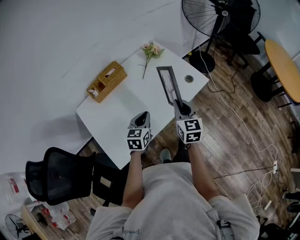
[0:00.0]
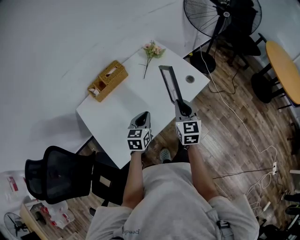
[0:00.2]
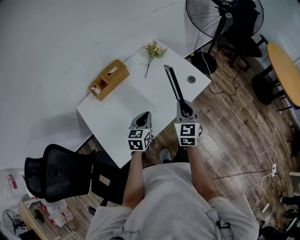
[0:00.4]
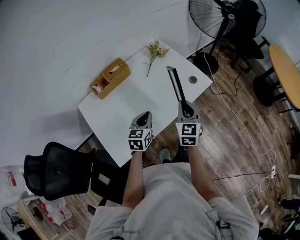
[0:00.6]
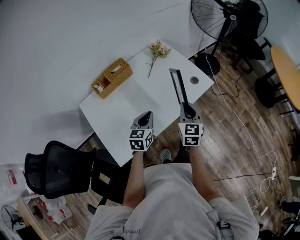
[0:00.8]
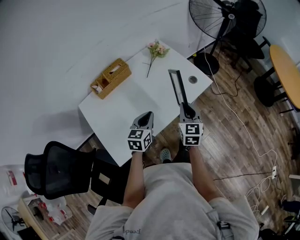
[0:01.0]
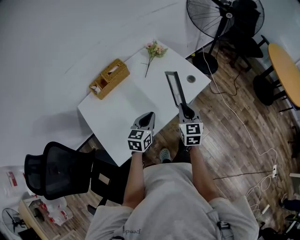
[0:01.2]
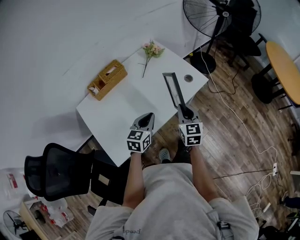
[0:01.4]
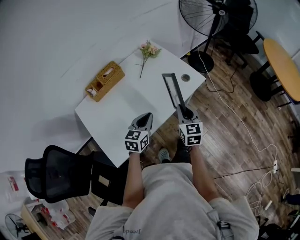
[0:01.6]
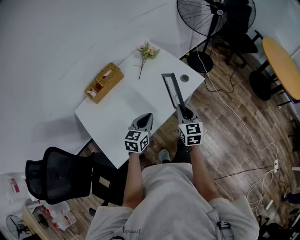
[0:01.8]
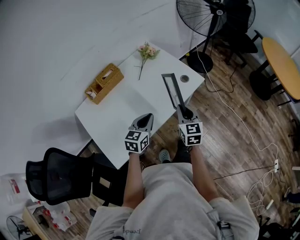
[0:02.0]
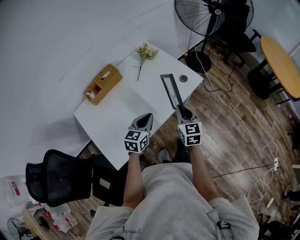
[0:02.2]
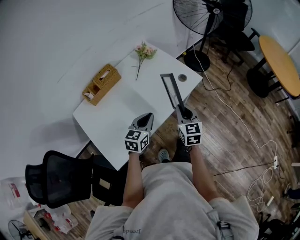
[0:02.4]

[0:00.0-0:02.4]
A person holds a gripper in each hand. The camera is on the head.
0:00.0 to 0:02.4: The grippers make only small movements.

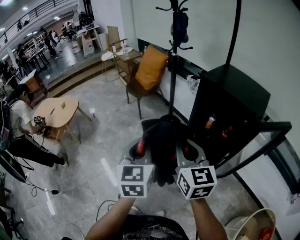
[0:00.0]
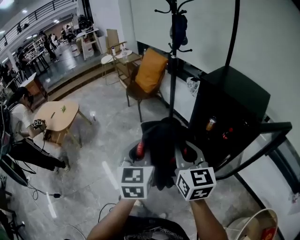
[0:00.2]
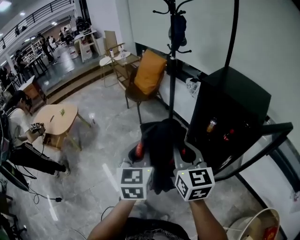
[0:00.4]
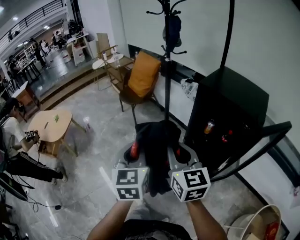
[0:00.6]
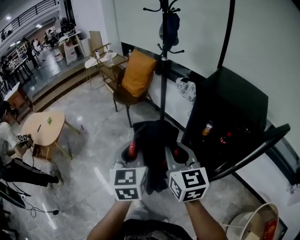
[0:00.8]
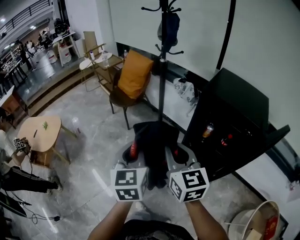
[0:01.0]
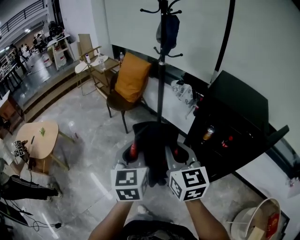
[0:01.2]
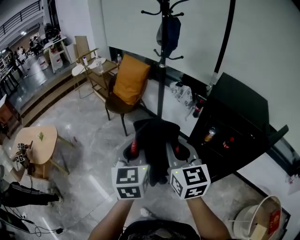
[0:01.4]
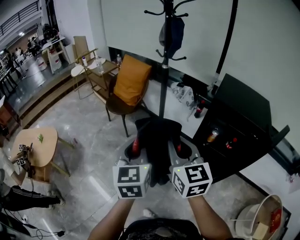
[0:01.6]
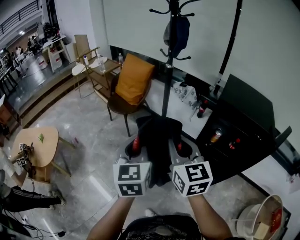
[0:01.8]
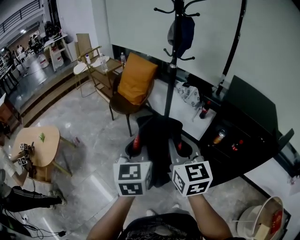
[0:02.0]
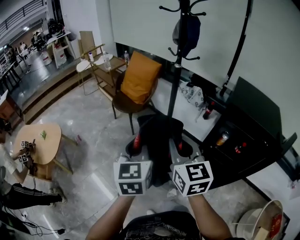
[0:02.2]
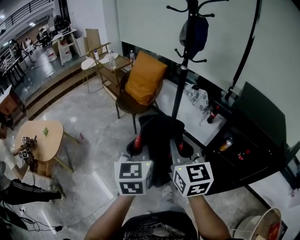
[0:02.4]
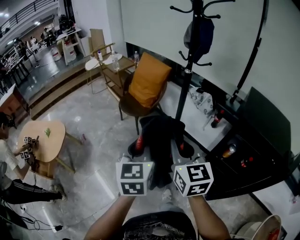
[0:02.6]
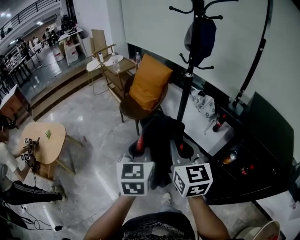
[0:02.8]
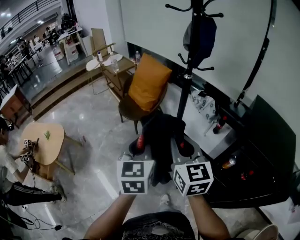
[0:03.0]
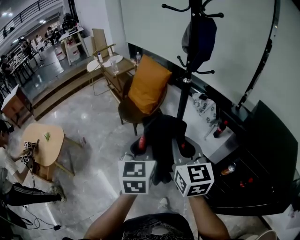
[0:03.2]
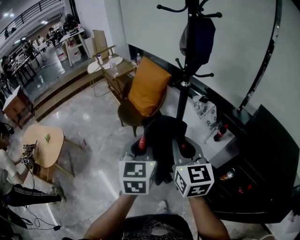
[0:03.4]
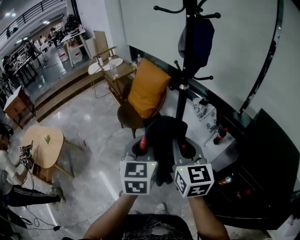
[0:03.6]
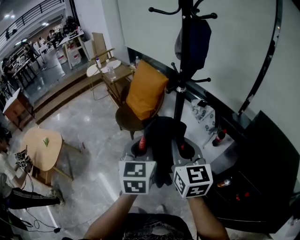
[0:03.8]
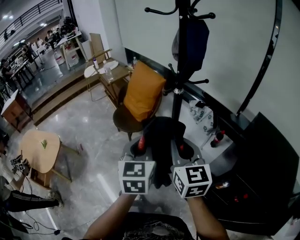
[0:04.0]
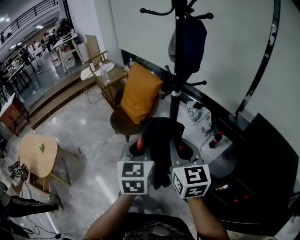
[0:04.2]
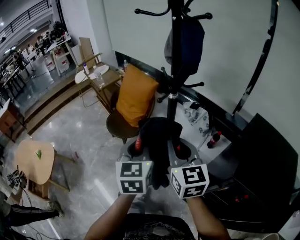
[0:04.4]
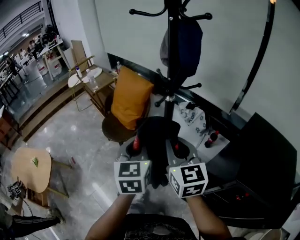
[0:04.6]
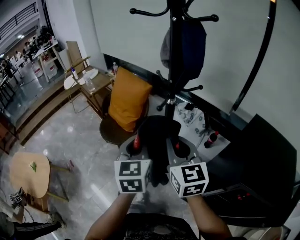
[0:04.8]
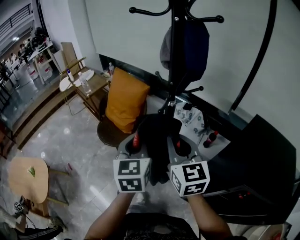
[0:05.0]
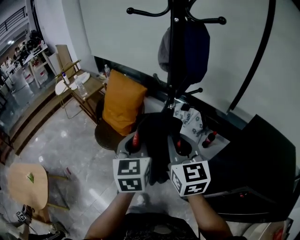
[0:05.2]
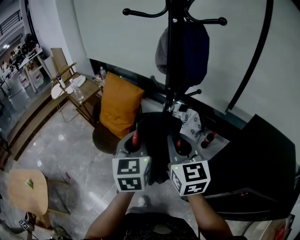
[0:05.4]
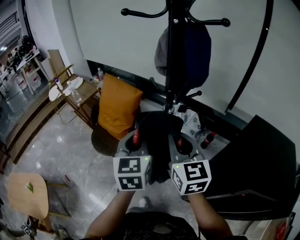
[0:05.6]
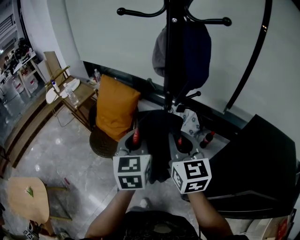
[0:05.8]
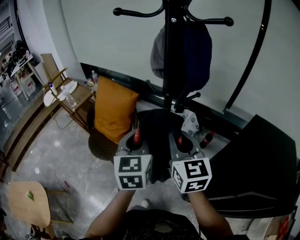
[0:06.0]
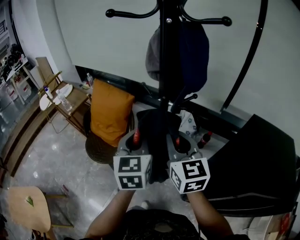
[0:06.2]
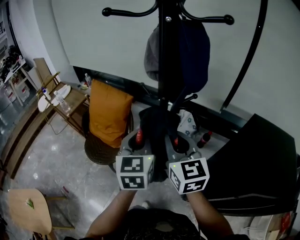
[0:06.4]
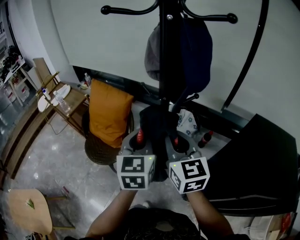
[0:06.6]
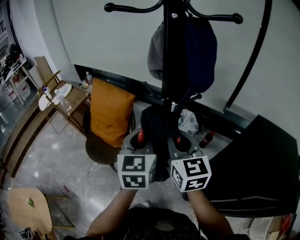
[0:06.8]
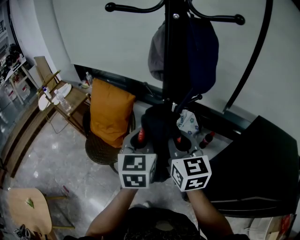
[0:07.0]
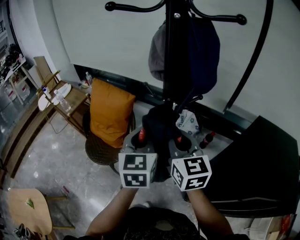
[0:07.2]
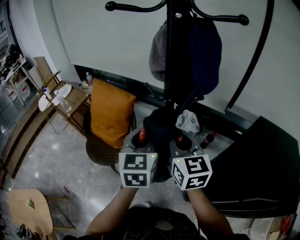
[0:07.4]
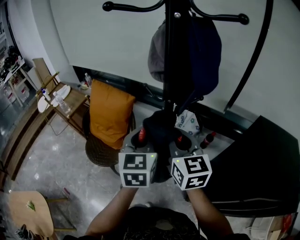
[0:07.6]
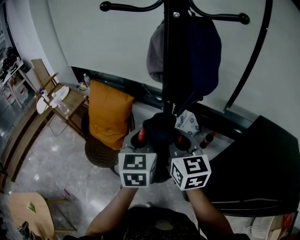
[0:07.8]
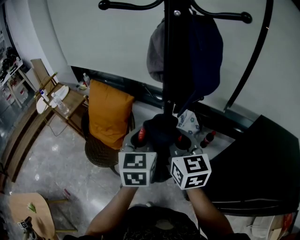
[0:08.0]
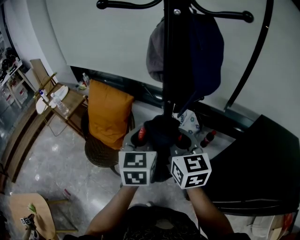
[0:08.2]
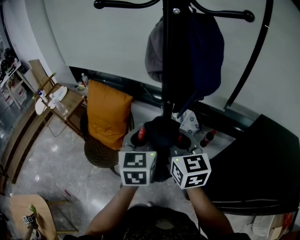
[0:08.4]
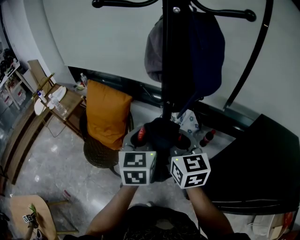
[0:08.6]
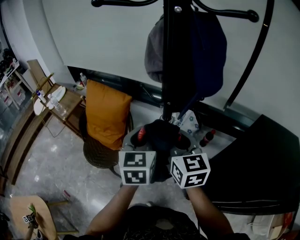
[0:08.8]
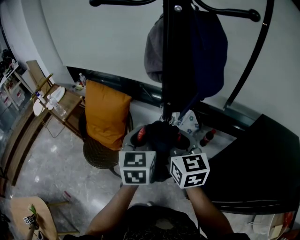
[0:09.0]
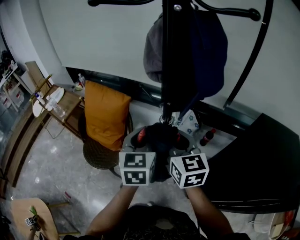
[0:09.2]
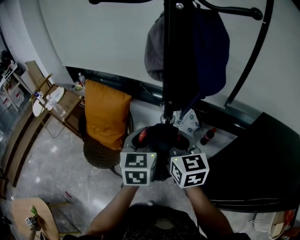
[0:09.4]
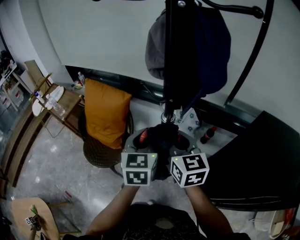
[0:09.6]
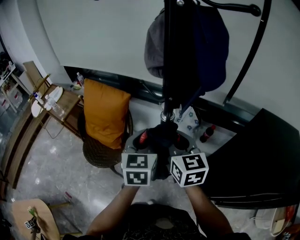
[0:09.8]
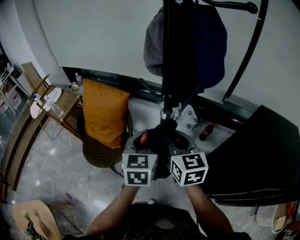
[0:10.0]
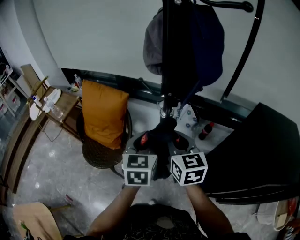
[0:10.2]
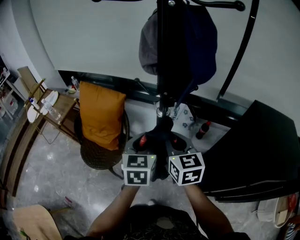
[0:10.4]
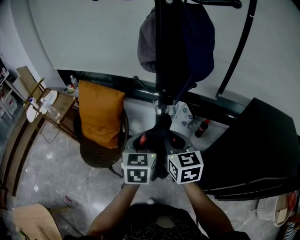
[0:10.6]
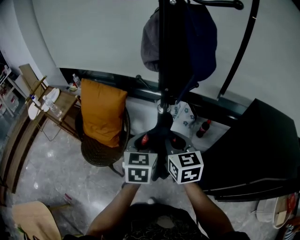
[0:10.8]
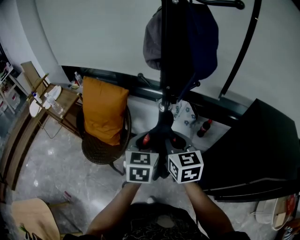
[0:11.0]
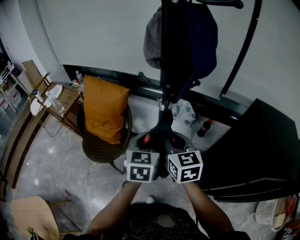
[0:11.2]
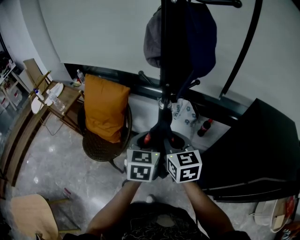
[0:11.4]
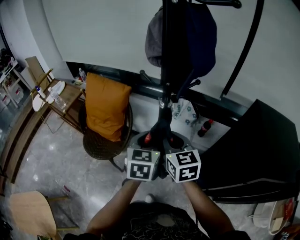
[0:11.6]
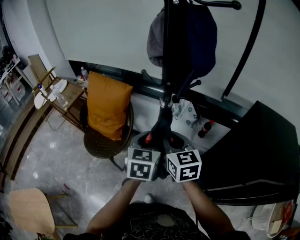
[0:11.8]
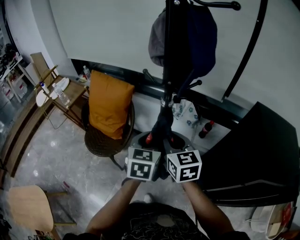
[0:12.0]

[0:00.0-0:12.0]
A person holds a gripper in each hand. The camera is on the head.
0:00.0 to 0:01.6: The two grippers go some 25 cm forward and to the left.
0:01.6 to 0:03.0: The two grippers go roughly 20 cm forward.
0:03.0 to 0:04.4: The two grippers go roughly 20 cm forward and to the right.
0:04.4 to 0:06.0: Both grippers travel together forward, approximately 15 cm.
0:06.0 to 0:07.6: Both grippers move forward, roughly 5 cm.
0:07.6 to 0:09.0: The grippers move only a little.
0:09.0 to 0:10.4: The left gripper changes place by roughly 5 cm. The right gripper shifts by some 5 cm.
0:10.4 to 0:12.0: The left gripper moves about 5 cm.

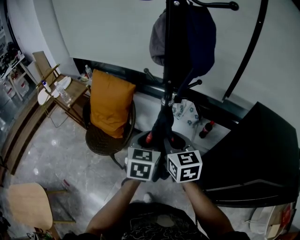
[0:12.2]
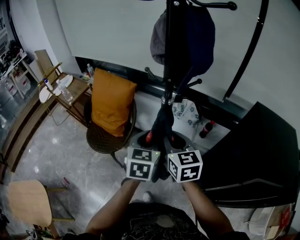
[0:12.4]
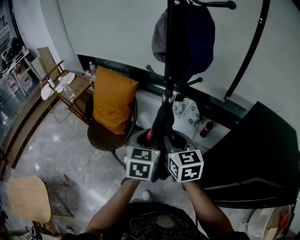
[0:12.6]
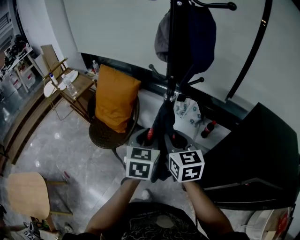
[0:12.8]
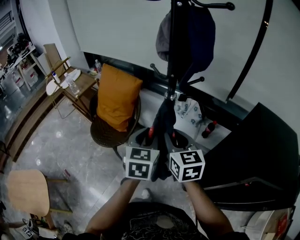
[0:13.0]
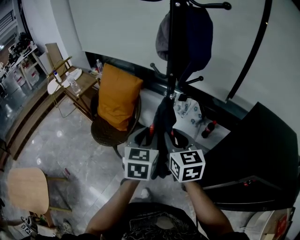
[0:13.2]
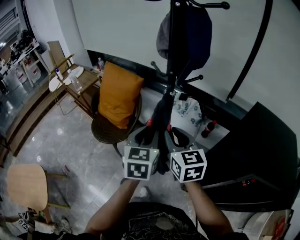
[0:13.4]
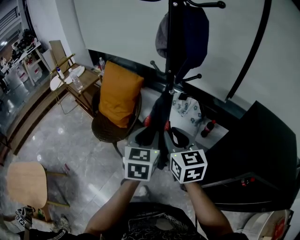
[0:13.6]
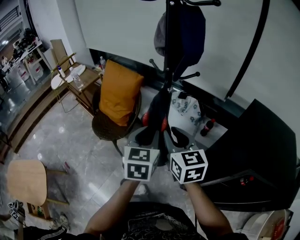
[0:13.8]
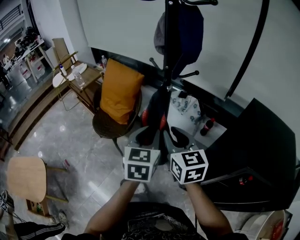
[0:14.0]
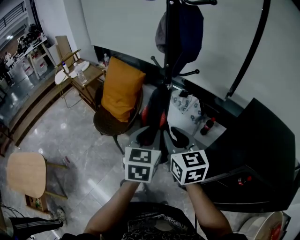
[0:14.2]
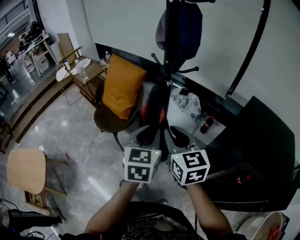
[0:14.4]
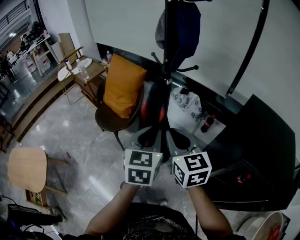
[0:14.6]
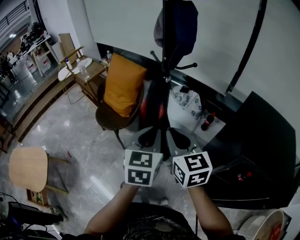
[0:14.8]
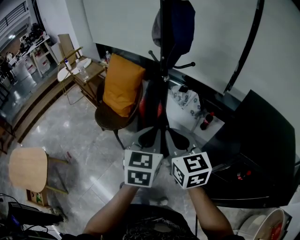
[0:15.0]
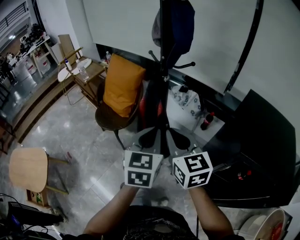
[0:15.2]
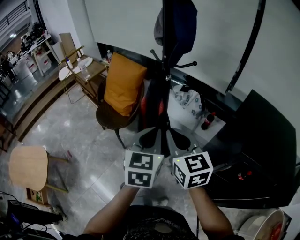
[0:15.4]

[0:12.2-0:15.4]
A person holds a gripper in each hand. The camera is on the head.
0:12.2 to 0:13.8: The grippers both shift backward by some 10 cm.
0:13.8 to 0:15.4: The grippers both shift backward by some 10 cm.

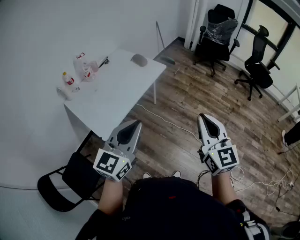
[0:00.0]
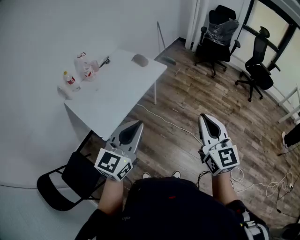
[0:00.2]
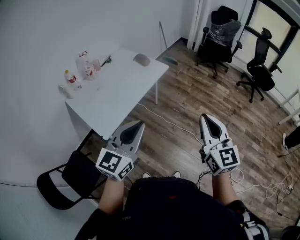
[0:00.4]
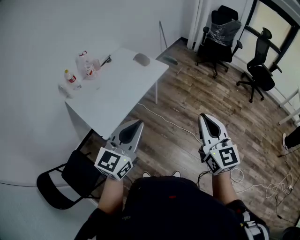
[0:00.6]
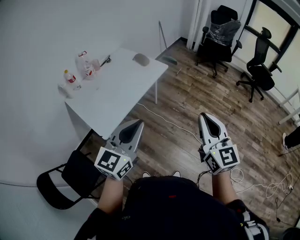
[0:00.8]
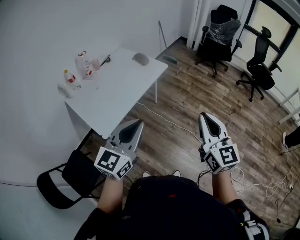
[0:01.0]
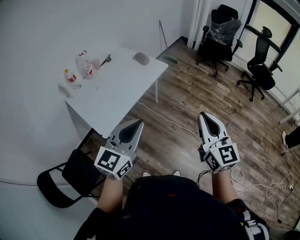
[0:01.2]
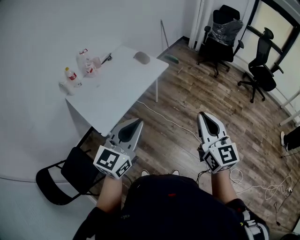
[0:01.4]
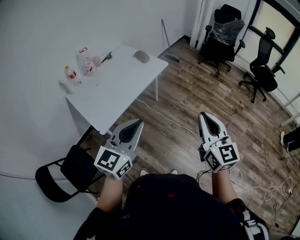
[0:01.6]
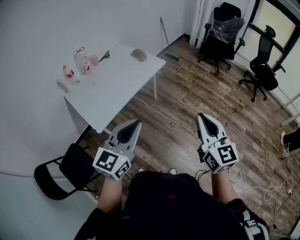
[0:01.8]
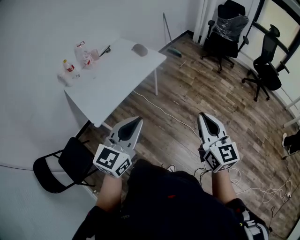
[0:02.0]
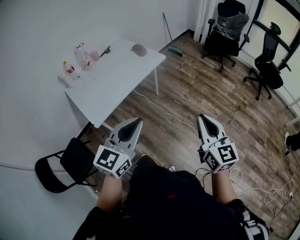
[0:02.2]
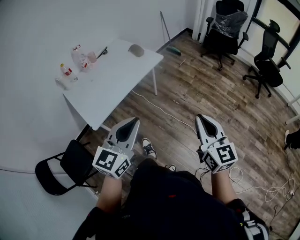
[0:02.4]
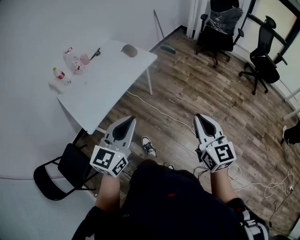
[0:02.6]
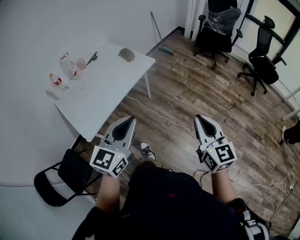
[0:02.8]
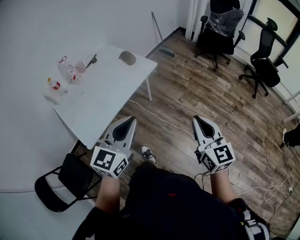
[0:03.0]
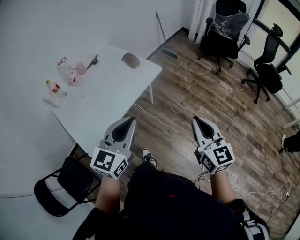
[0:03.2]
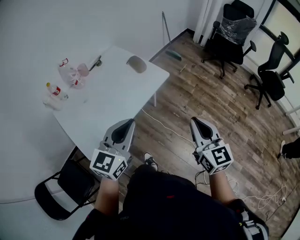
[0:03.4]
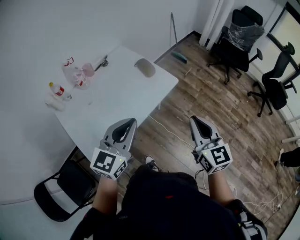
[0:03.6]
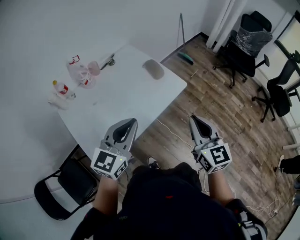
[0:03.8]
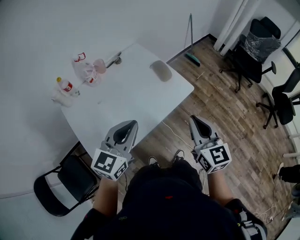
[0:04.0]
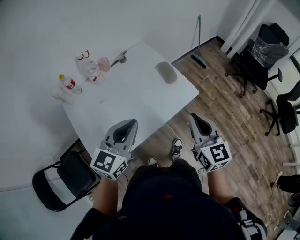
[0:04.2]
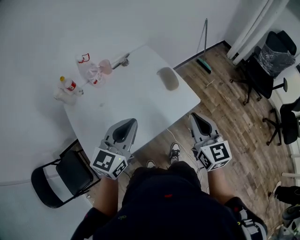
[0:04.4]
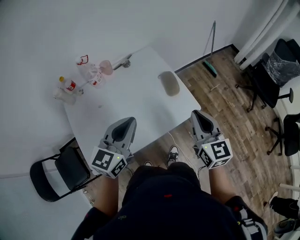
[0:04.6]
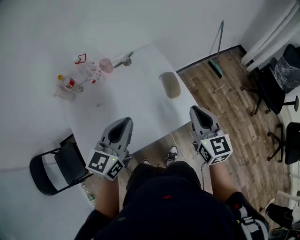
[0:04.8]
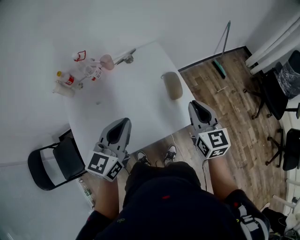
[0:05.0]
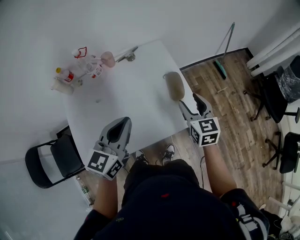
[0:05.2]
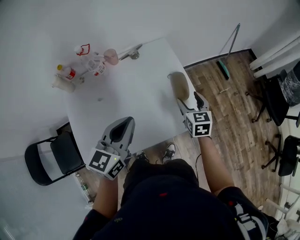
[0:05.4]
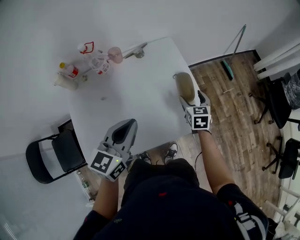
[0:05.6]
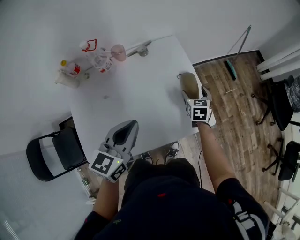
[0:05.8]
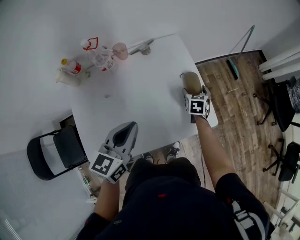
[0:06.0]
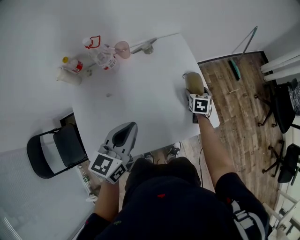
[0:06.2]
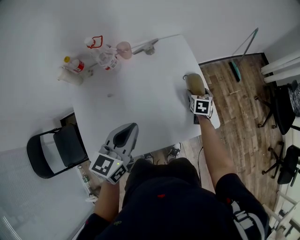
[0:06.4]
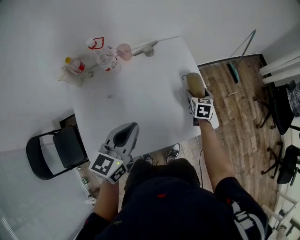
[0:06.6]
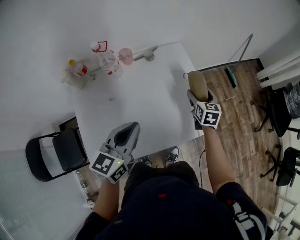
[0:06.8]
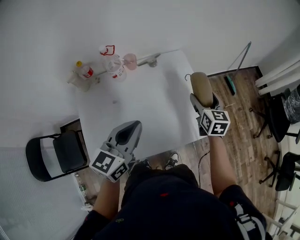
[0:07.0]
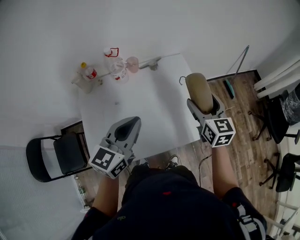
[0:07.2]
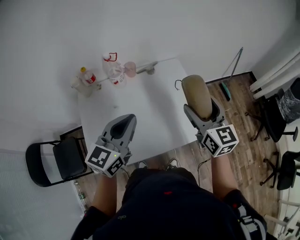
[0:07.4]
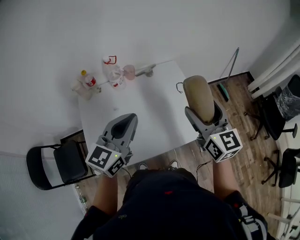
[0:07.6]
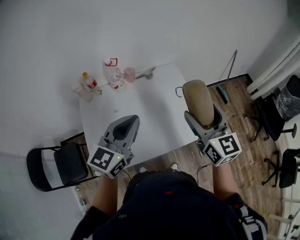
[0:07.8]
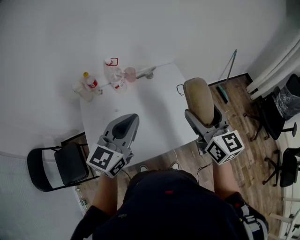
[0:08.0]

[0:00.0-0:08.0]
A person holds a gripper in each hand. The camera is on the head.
0:00.0 to 0:01.6: There are only small adjustments of the grippers.
0:01.6 to 0:03.2: The right gripper moves forward and downward, about 20 cm. The left gripper travels forward by approximately 20 cm.
0:03.2 to 0:04.8: The two grippers go about 40 cm forward. The left gripper rotates about 30 degrees, while the right gripper changes its angle by approximately 20 degrees.
0:04.8 to 0:06.4: The left gripper heads to the left and downward, covering some 10 cm, while the right gripper moves downward and forward, some 40 cm, points its fingers about 40 degrees further downward, and opens its fingers.
0:06.4 to 0:08.0: The right gripper shifts approximately 50 cm upward and backward, and points its fingers approximately 50 degrees further upward, while the left gripper moves upward, about 15 cm, and rotates roughly 20 degrees.
